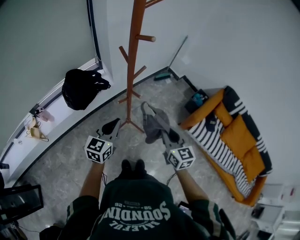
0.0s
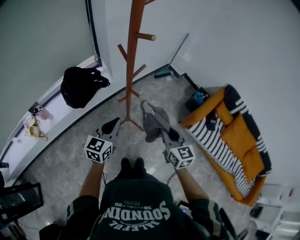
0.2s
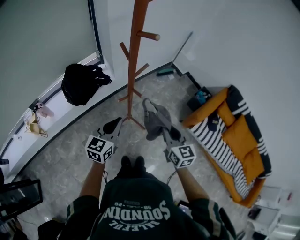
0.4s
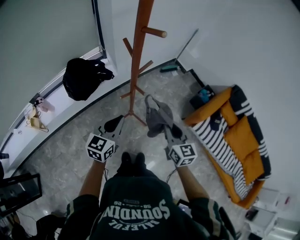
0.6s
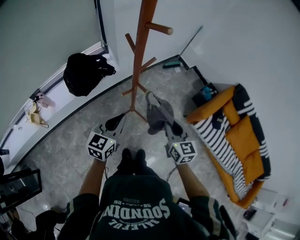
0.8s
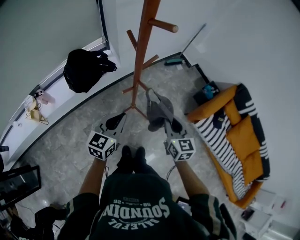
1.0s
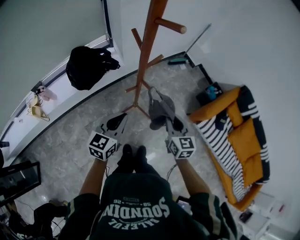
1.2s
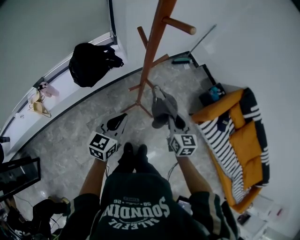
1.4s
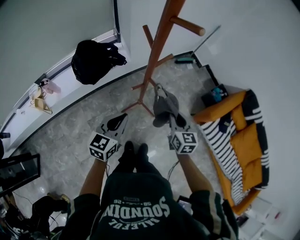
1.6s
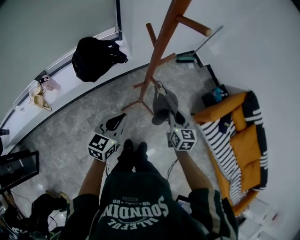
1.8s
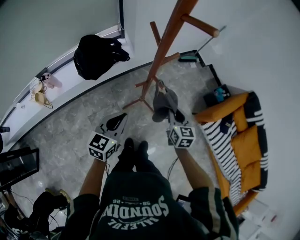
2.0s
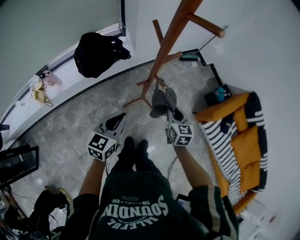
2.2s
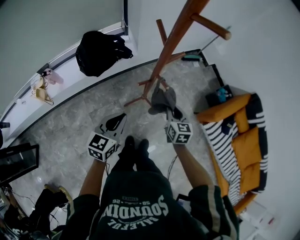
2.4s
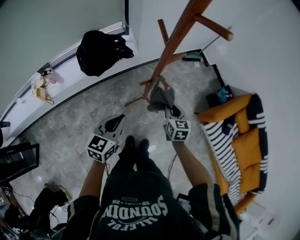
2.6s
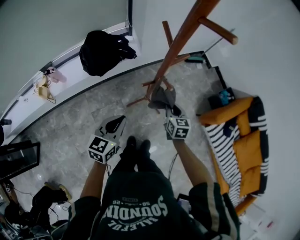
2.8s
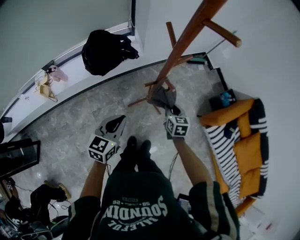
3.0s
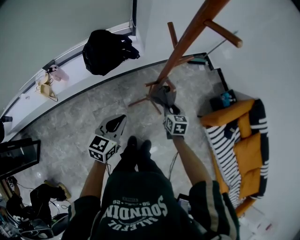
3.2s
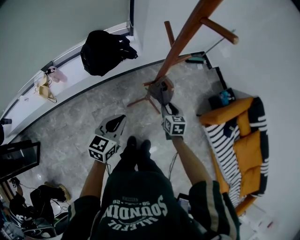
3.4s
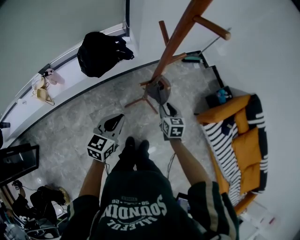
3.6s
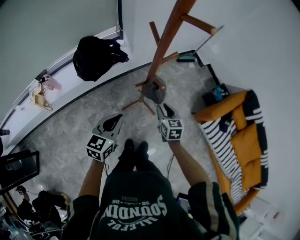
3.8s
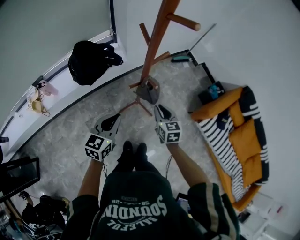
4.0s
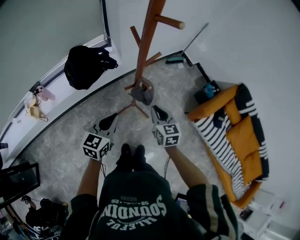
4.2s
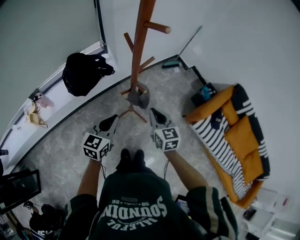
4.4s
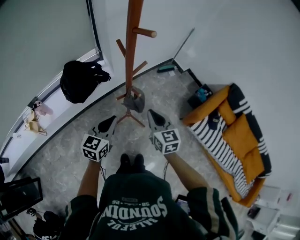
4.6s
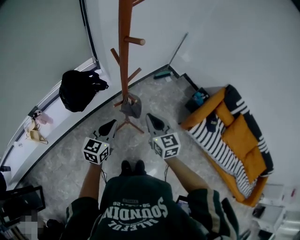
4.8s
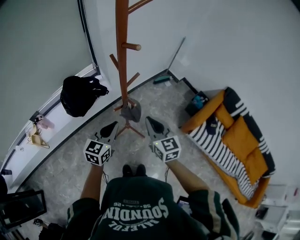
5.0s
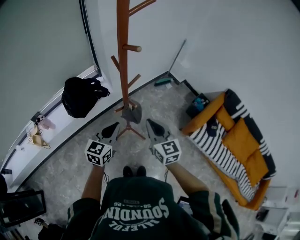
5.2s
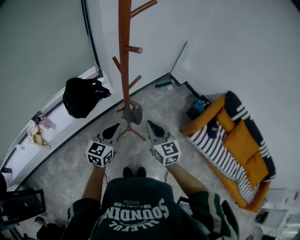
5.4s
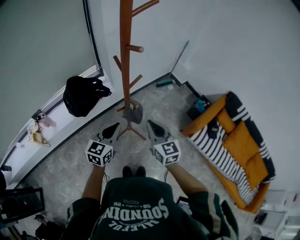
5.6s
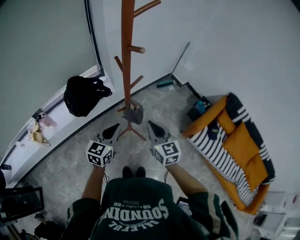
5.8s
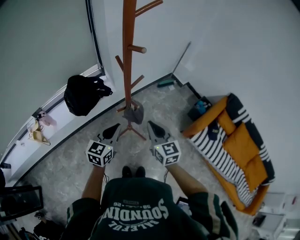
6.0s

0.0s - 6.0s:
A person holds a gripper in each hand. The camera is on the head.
0.0s - 1.6s: The left gripper moves downward, some 5 cm. The right gripper moves downward and forward, roughly 15 cm.
1.6s - 3.0s: The left gripper changes place by about 5 cm. The right gripper travels downward and to the left by approximately 10 cm.
3.0s - 4.4s: The right gripper goes roughly 15 cm upward, while the left gripper ends up about 5 cm from where it was.
4.4s - 6.0s: The right gripper travels upward by approximately 5 cm, while the left gripper changes place by roughly 5 cm.

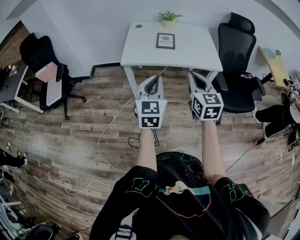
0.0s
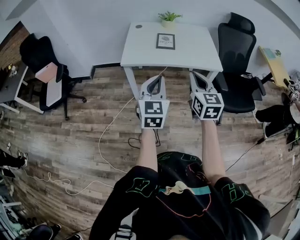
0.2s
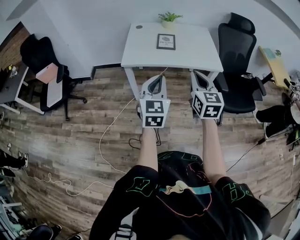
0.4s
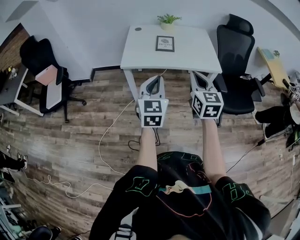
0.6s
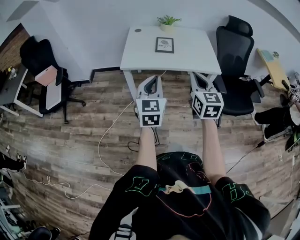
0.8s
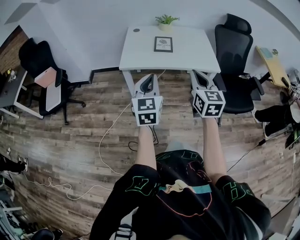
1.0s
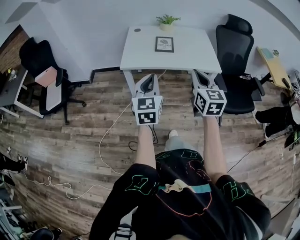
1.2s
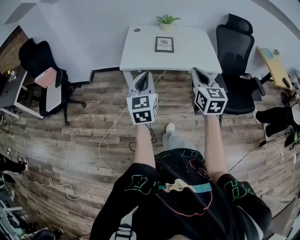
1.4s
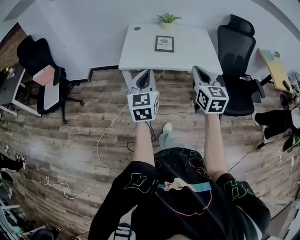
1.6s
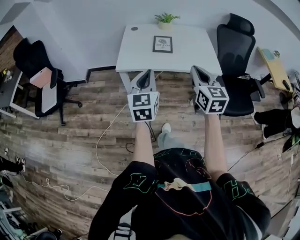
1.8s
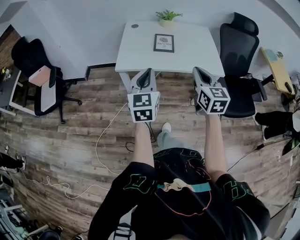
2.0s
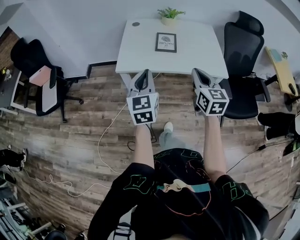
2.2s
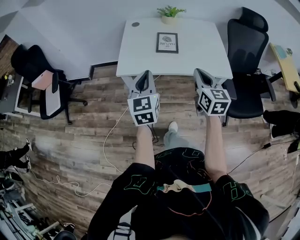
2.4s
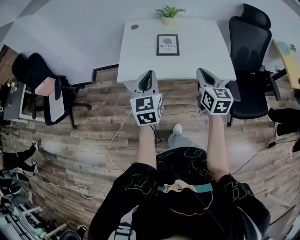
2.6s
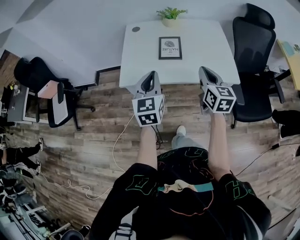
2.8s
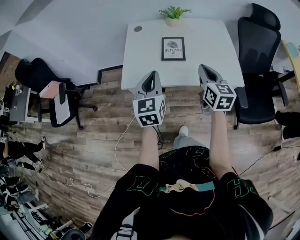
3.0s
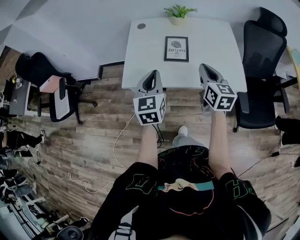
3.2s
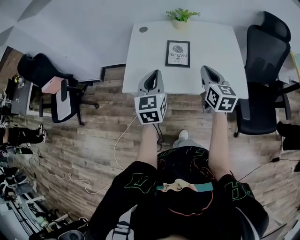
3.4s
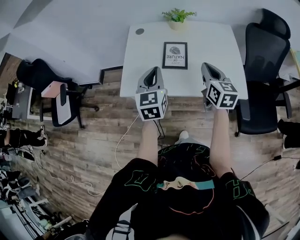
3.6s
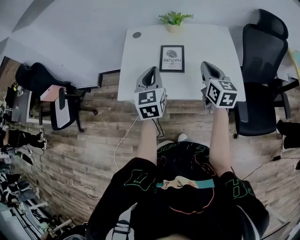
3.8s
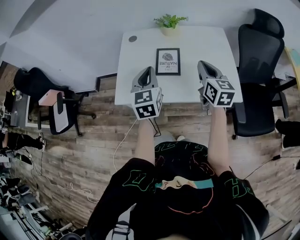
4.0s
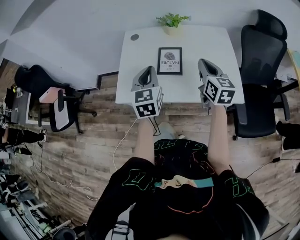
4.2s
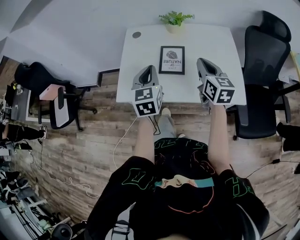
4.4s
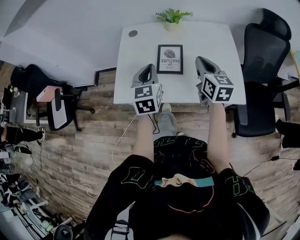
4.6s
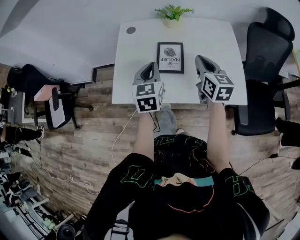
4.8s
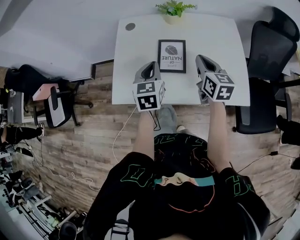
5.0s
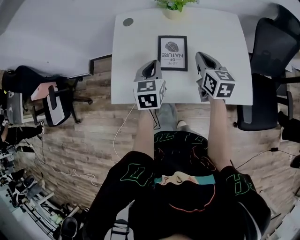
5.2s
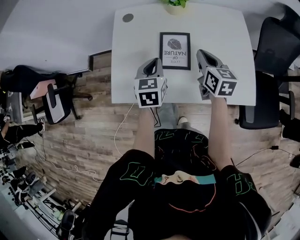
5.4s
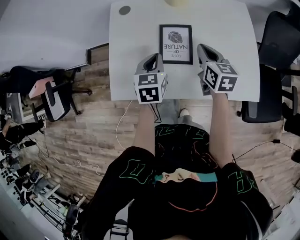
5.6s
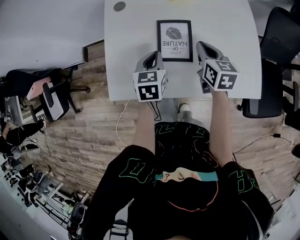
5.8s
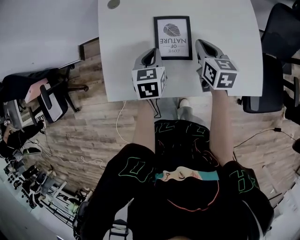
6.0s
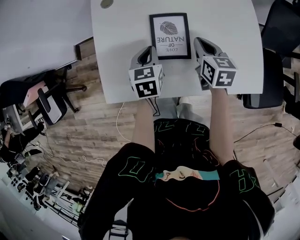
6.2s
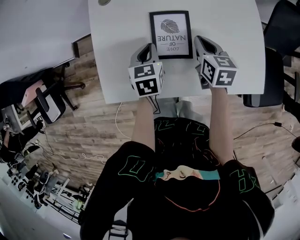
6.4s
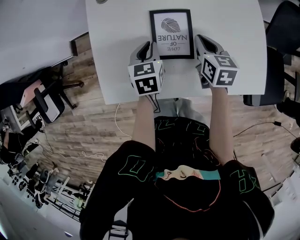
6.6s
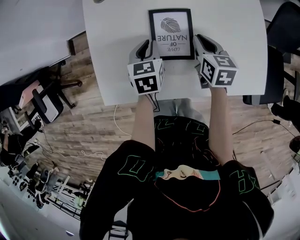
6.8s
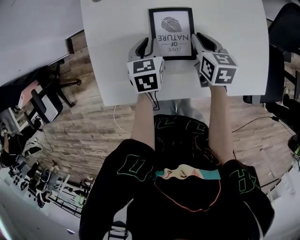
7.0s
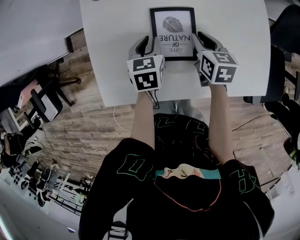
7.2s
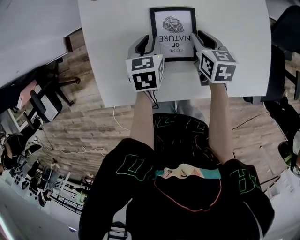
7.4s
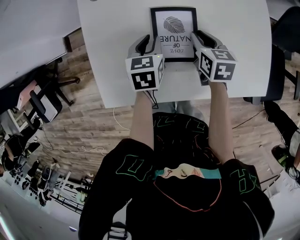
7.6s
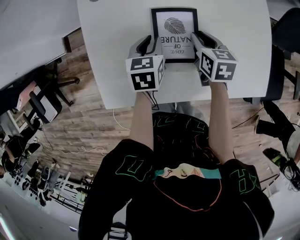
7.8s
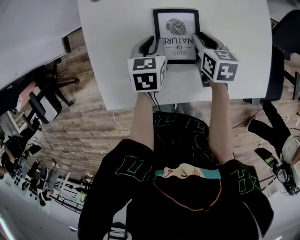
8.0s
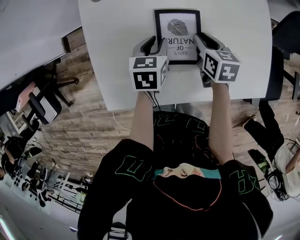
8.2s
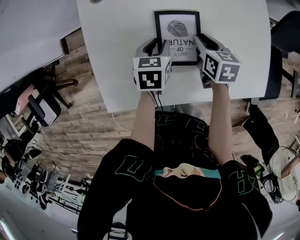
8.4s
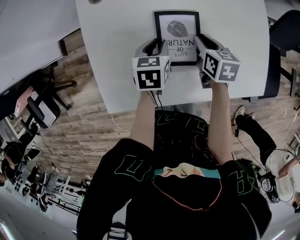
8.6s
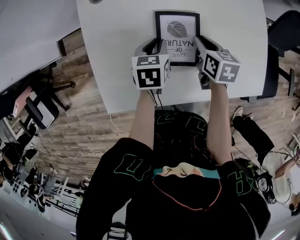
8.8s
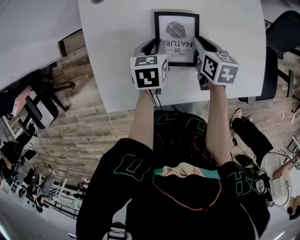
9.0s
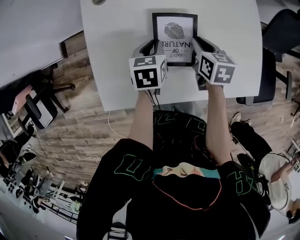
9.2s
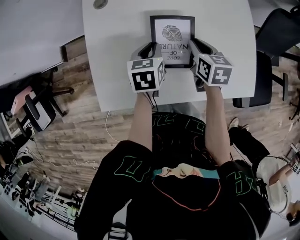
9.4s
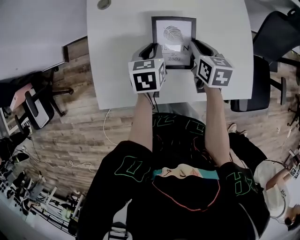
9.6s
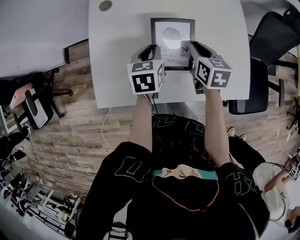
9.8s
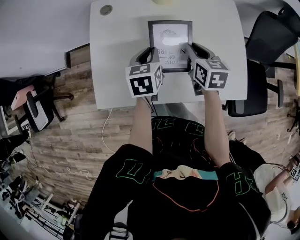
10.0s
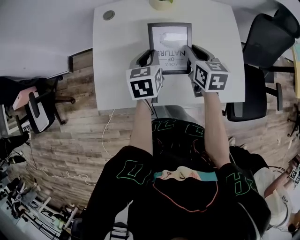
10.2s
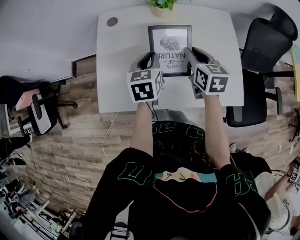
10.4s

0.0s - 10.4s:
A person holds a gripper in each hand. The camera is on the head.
0.0s - 1.4s: The left gripper changes place by some 5 cm.
1.4s - 3.0s: The two grippers go some 25 cm forward.
3.0s - 4.4s: Both grippers move forward, approximately 15 cm.
4.4s - 6.0s: Both grippers travel together downward and forward, roughly 20 cm. The right gripper swivels about 20 degrees; the left gripper changes its angle by about 30 degrees.
6.0s - 7.4s: The right gripper shifts roughly 10 cm downward, and opens up; the left gripper travels forward and downward by about 10 cm, and opens its fingers.
7.4s - 9.0s: The grippers move only a little.
9.0s - 10.4s: Both grippers travel together upward, some 15 cm. The left gripper turns by about 20 degrees. Meanwhile the right gripper rotates approximately 20 degrees.

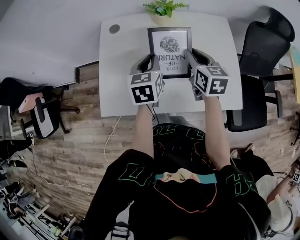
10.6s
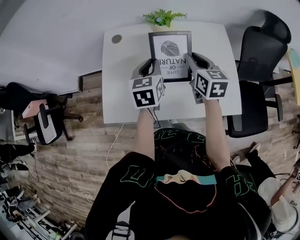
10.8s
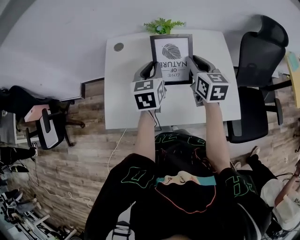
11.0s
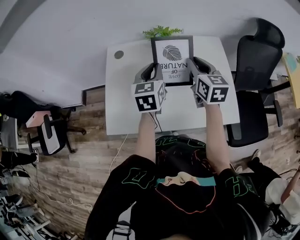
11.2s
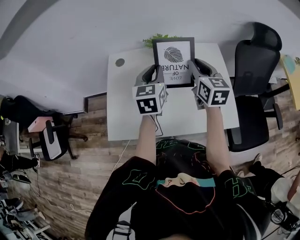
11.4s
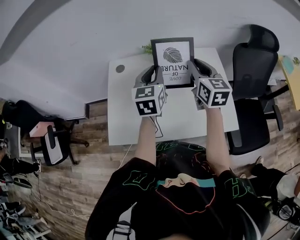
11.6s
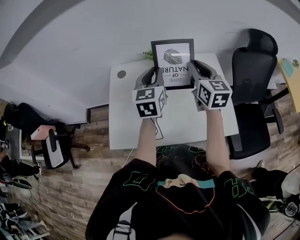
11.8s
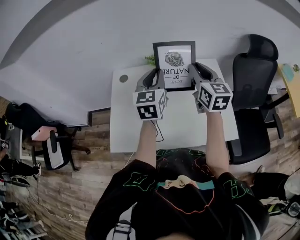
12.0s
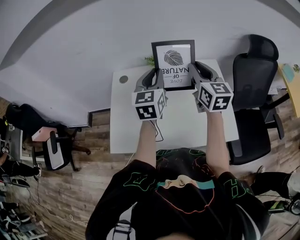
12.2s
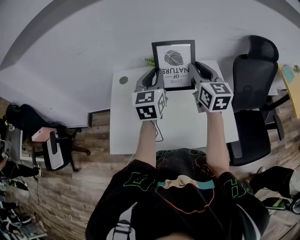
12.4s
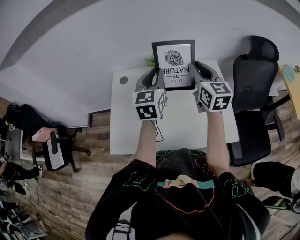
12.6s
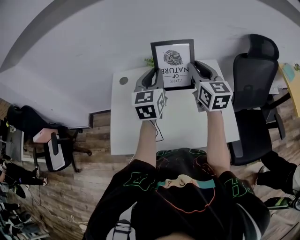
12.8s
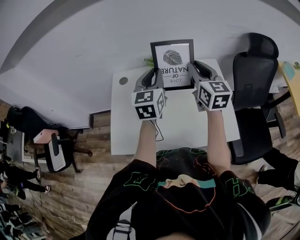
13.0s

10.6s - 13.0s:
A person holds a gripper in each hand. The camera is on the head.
10.6s - 11.8s: The left gripper heads upward, covering approximately 15 cm, and changes its angle by approximately 20 degrees; the right gripper shifts approximately 15 cm upward and to the right, and turns by approximately 20 degrees.
11.8s - 13.0s: The grippers make only small movements.

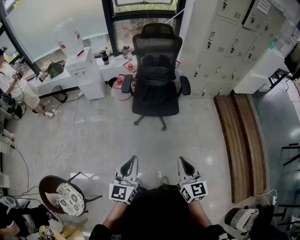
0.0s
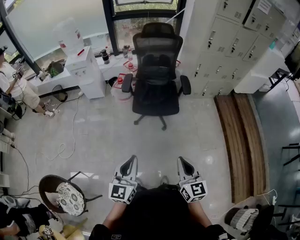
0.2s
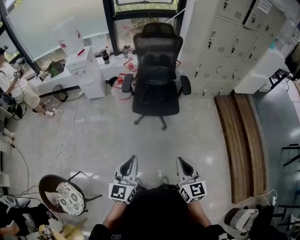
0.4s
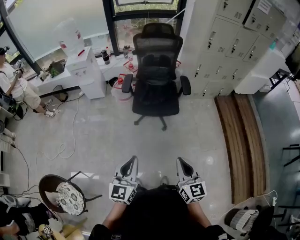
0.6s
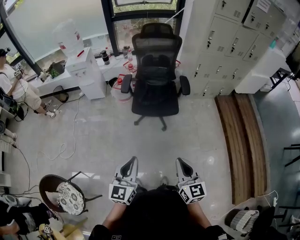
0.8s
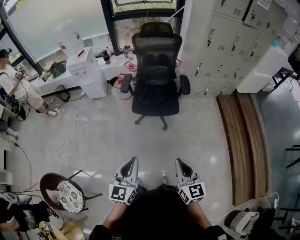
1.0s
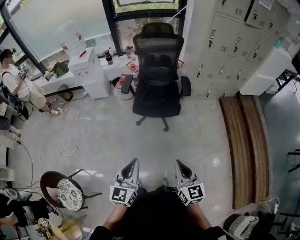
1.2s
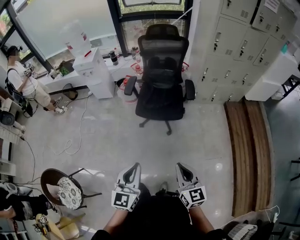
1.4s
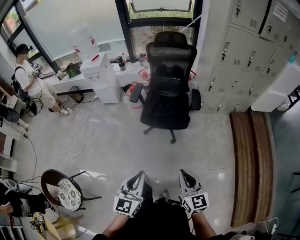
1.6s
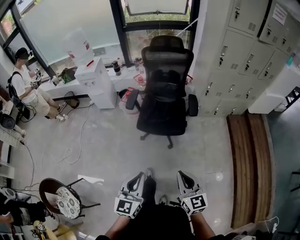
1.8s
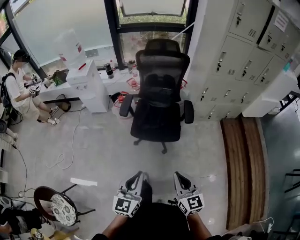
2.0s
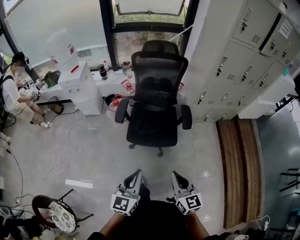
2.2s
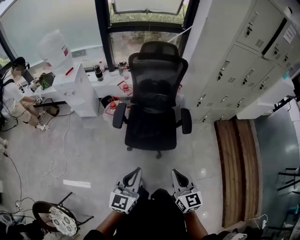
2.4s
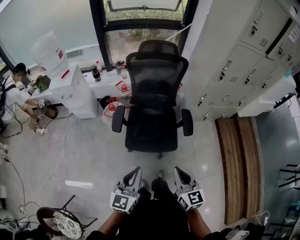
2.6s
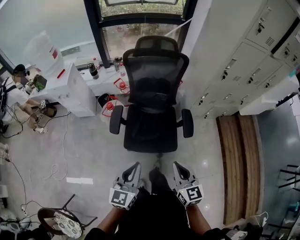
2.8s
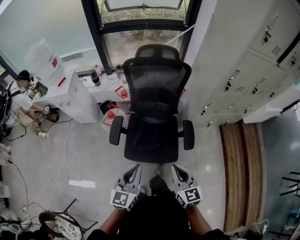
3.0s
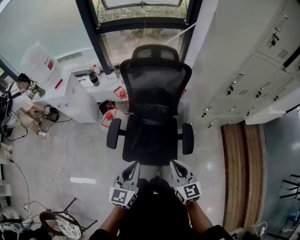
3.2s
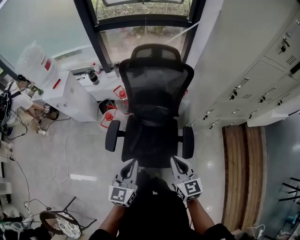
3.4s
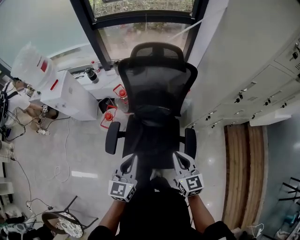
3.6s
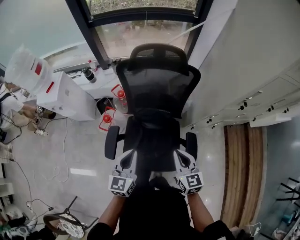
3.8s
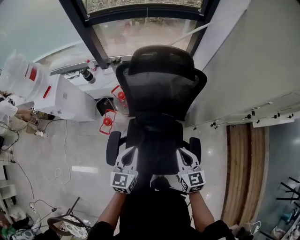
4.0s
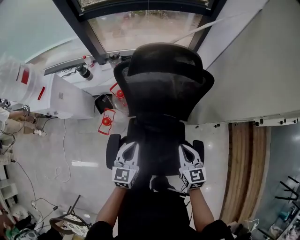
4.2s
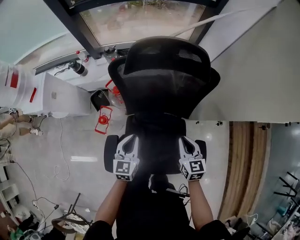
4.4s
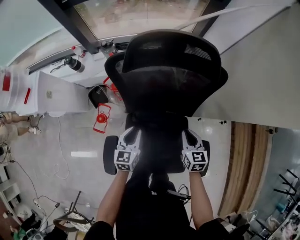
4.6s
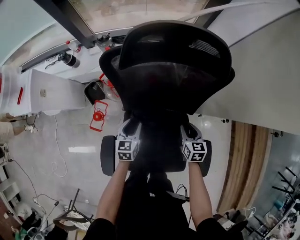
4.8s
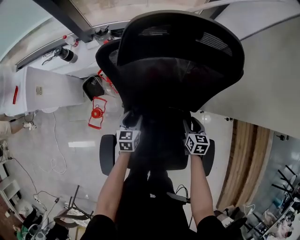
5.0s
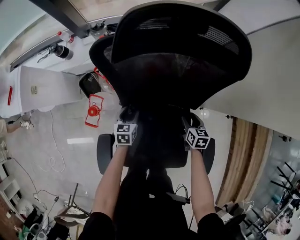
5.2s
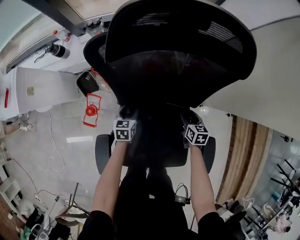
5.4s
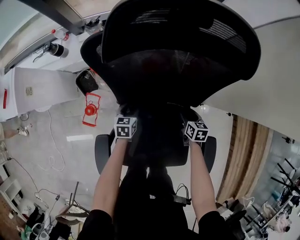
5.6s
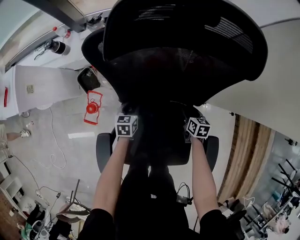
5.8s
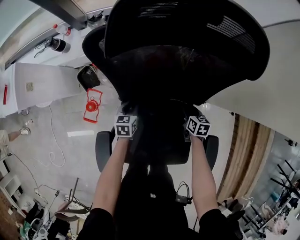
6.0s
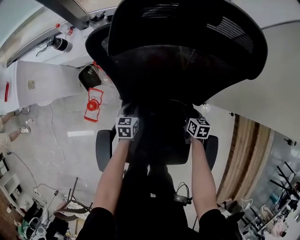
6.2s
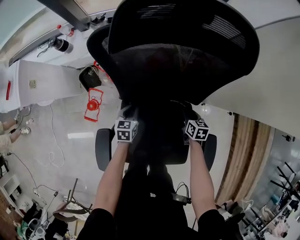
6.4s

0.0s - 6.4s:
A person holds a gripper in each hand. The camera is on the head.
0.0s - 1.6s: The two grippers go about 10 cm to the right.
1.6s - 3.2s: Both grippers are carried forward, about 50 cm.
3.2s - 4.8s: The two grippers go roughly 50 cm forward and downward. The left gripper swivels about 30 degrees, and opens. The right gripper changes its angle by roughly 30 degrees, and opens its fingers.
4.8s - 6.4s: Both grippers move downward, about 10 cm. The left gripper closes.
